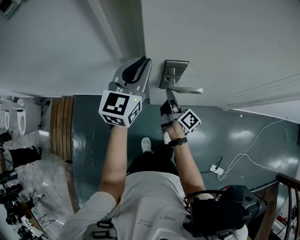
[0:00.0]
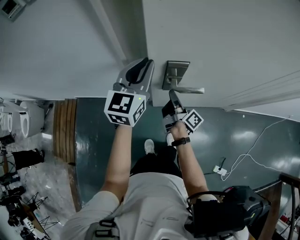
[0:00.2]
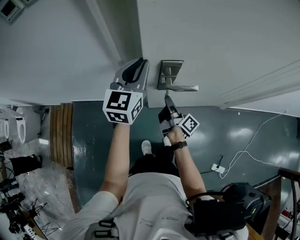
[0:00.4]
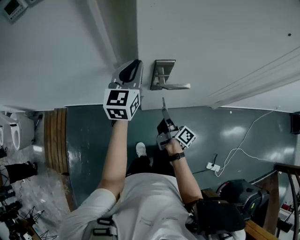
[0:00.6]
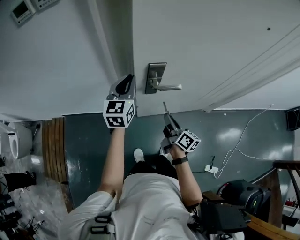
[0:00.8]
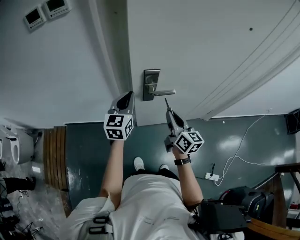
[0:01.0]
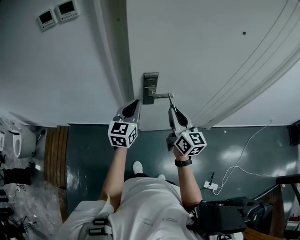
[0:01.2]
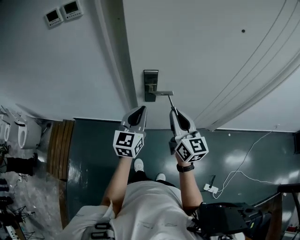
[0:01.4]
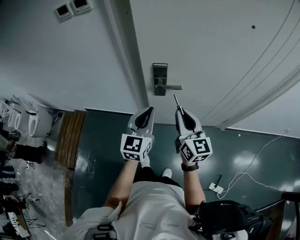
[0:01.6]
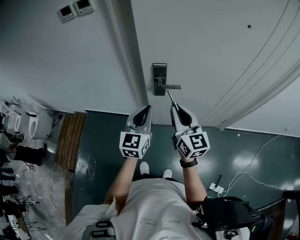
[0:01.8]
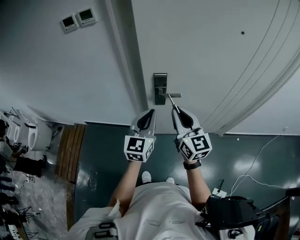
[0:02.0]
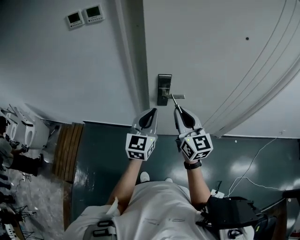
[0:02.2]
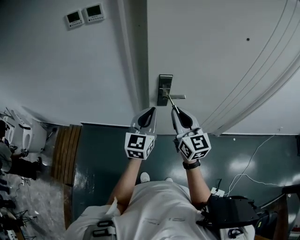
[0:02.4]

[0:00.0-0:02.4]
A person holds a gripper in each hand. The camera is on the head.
0:00.0 to 0:01.2: The right gripper shifts roughly 25 cm upward and backward, and twists some 50 degrees counterclockwise, seen from behind, while the left gripper is displaced backward by roughly 15 cm.
0:01.2 to 0:02.4: The left gripper goes approximately 10 cm backward and upward, while the right gripper is displaced to the left and upward by some 10 cm.

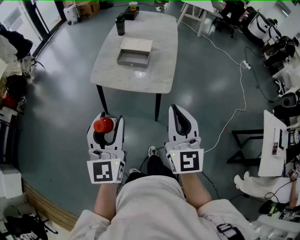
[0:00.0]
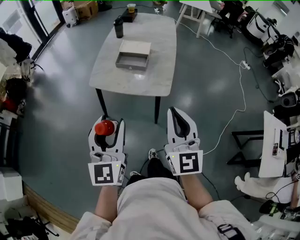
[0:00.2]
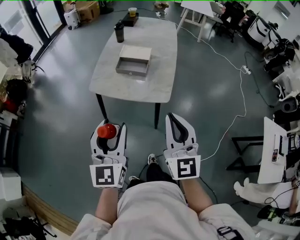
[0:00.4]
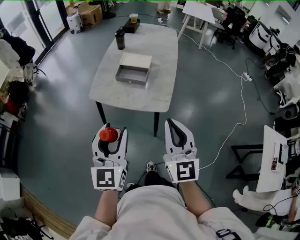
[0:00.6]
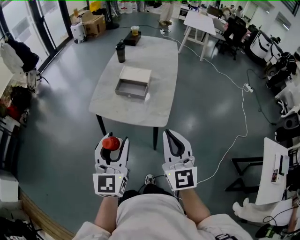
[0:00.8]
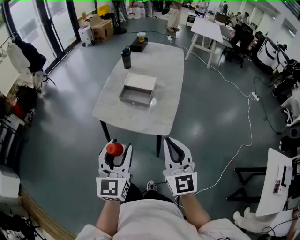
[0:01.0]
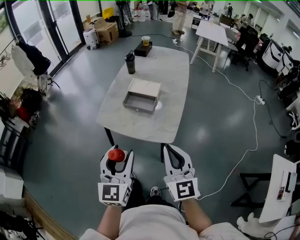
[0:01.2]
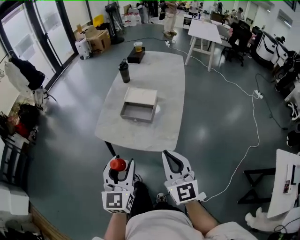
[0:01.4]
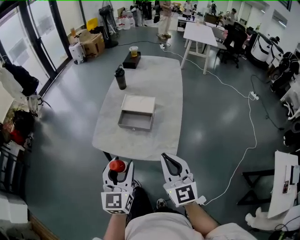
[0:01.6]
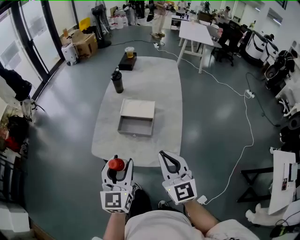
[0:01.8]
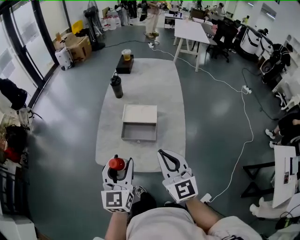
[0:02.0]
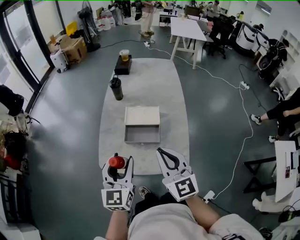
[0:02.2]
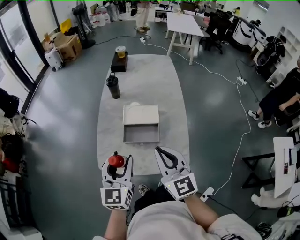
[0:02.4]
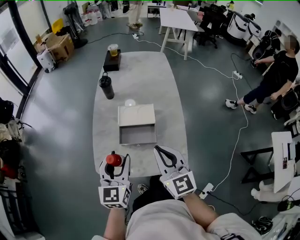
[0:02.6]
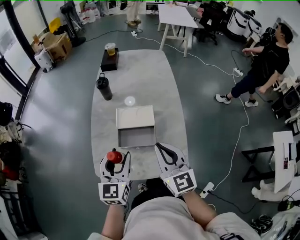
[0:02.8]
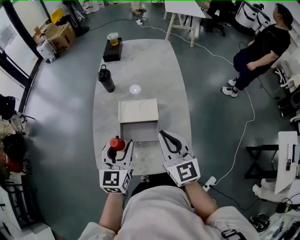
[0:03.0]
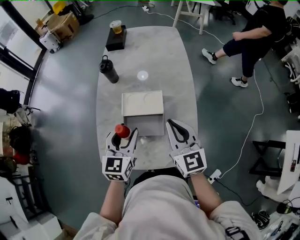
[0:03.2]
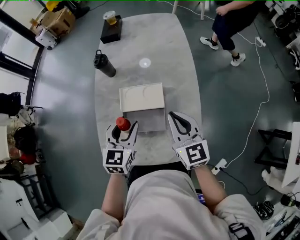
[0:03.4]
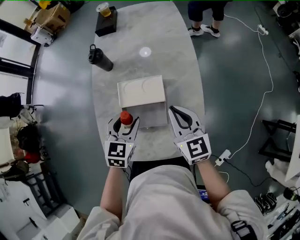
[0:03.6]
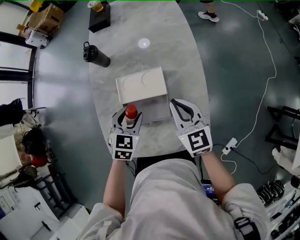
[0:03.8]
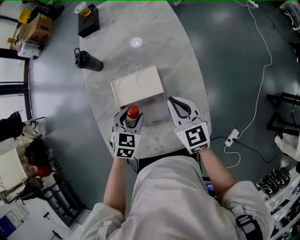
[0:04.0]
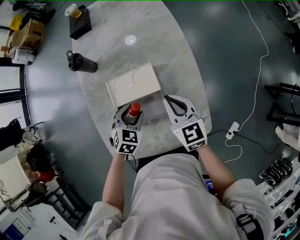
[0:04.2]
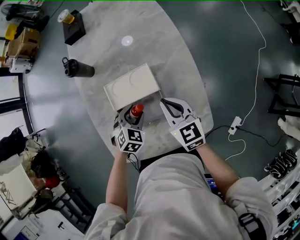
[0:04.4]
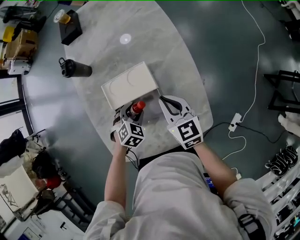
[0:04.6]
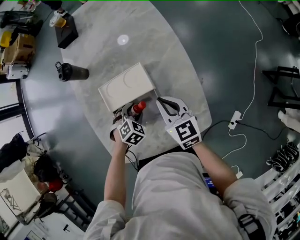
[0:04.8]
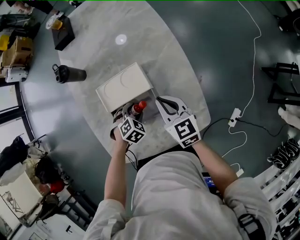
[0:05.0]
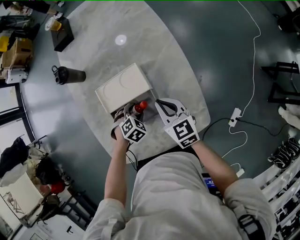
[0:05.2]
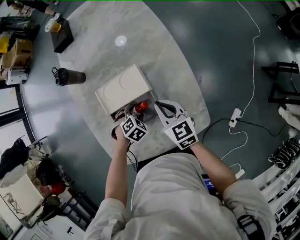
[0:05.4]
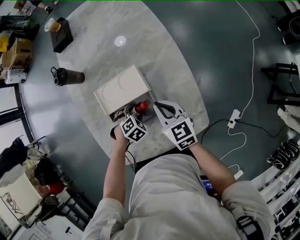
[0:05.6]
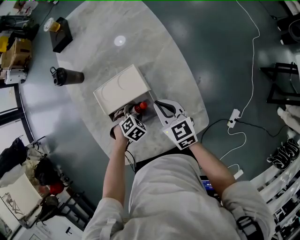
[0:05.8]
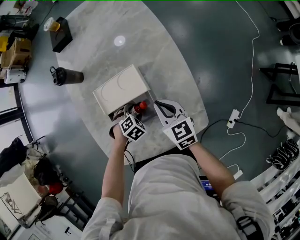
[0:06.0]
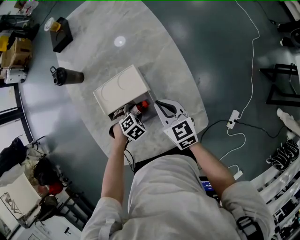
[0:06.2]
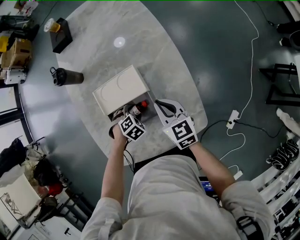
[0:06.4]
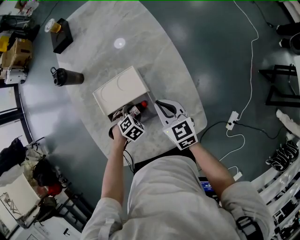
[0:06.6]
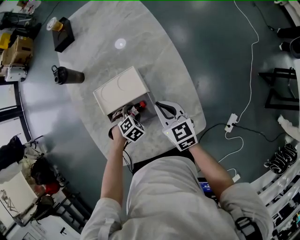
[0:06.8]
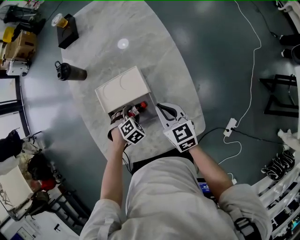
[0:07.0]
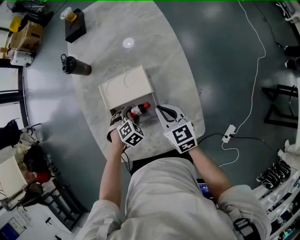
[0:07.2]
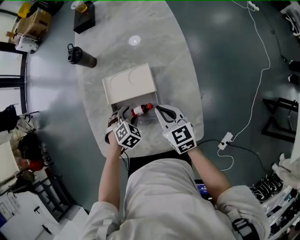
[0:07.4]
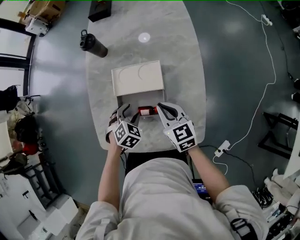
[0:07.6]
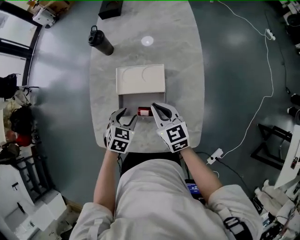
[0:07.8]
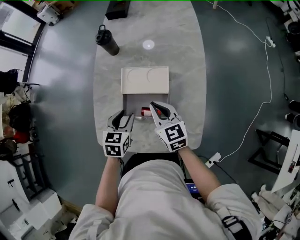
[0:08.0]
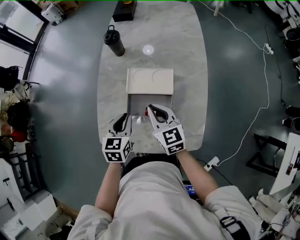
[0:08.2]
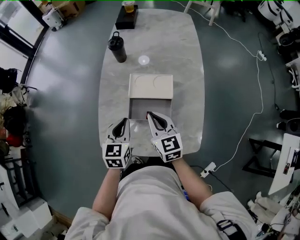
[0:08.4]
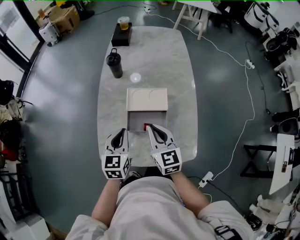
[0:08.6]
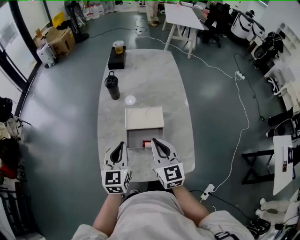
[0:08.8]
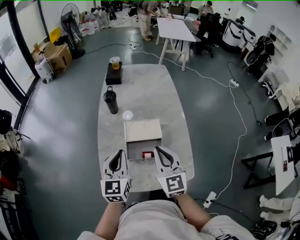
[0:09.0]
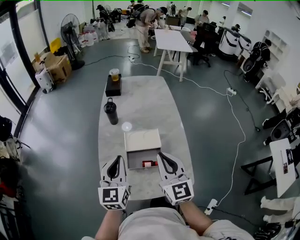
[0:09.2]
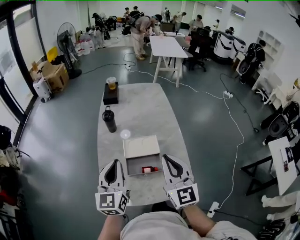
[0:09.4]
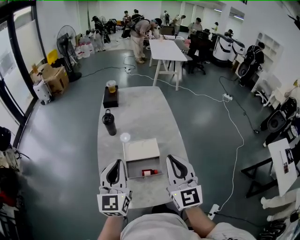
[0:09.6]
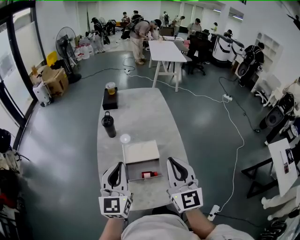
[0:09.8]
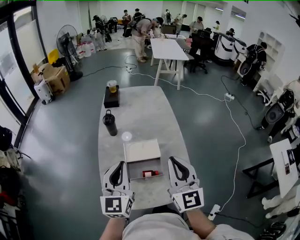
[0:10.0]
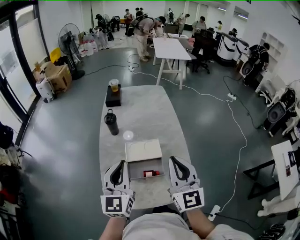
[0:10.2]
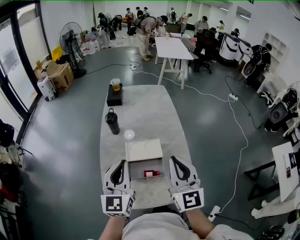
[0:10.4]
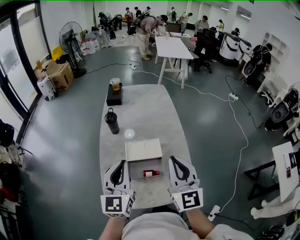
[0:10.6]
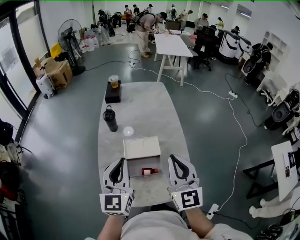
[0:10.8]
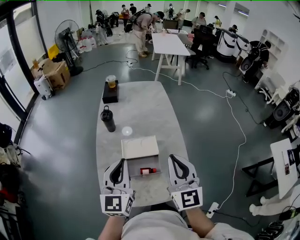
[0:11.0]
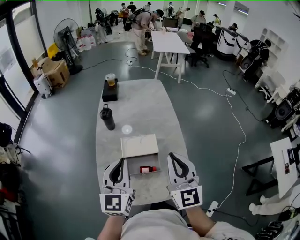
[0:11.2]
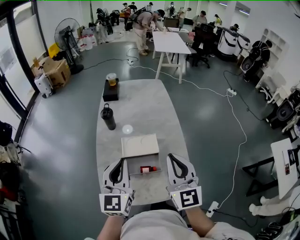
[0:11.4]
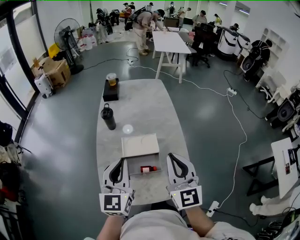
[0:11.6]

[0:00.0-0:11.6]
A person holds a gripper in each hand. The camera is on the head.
0:00.0 to 0:01.4: The right gripper moves forward, approximately 15 cm. Meanwhile the left gripper goes some 15 cm forward and to the right.
0:01.4 to 0:02.8: The grippers both shift forward by some 30 cm.
0:02.8 to 0:04.4: Both grippers move downward and forward, roughly 25 cm. The left gripper tips its fingers downward by some 40 degrees. The right gripper changes its angle by some 20 degrees.
0:04.4 to 0:05.8: The right gripper ends up about 5 cm from where it was, while the left gripper is displaced downward by about 10 cm, and changes its angle by about 30 degrees.
0:05.8 to 0:07.2: The grippers stay close to where they were, moving slightly.
0:07.2 to 0:08.8: The left gripper travels upward and to the left by about 30 cm, angles its fingers upward, by some 60 degrees, and closes its fingers, while the right gripper is displaced upward and to the left by approximately 20 cm, and rotates roughly 20 degrees.
0:08.8 to 0:10.2: Both grippers move upward, about 15 cm.
0:10.2 to 0:11.6: There are only small adjustments of the grippers.

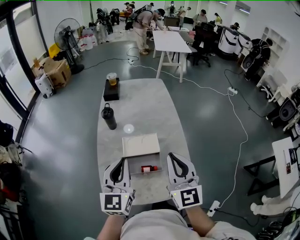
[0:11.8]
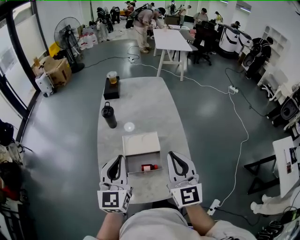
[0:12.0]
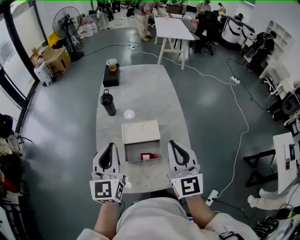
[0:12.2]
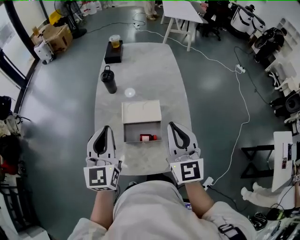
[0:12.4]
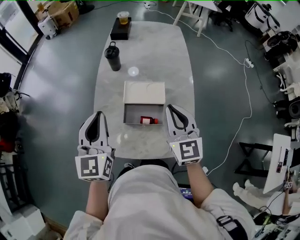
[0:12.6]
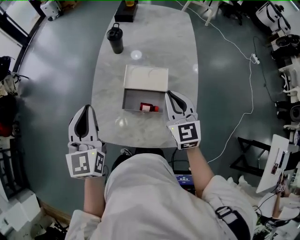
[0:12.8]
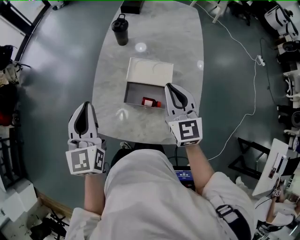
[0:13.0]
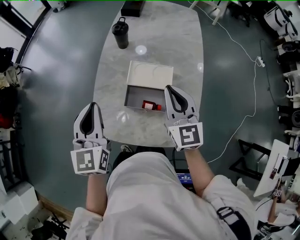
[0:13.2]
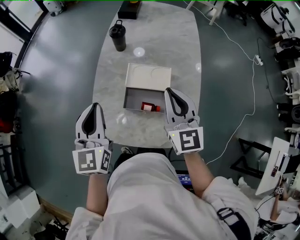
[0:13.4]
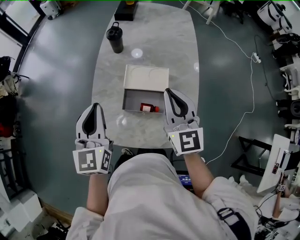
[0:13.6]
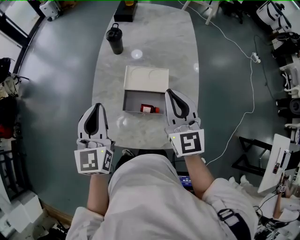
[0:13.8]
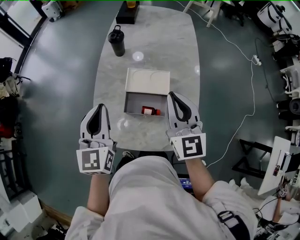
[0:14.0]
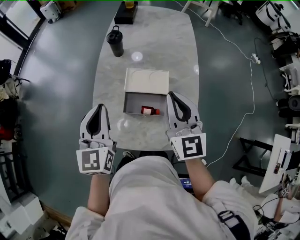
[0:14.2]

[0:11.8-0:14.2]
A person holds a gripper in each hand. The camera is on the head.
0:11.8 to 0:13.0: The left gripper moves to the left and downward, roughly 15 cm, and turns by some 30 degrees. The right gripper moves downward and forward, about 15 cm, and swivels roughly 20 degrees.
0:13.0 to 0:14.2: The right gripper shifts roughly 5 cm upward.

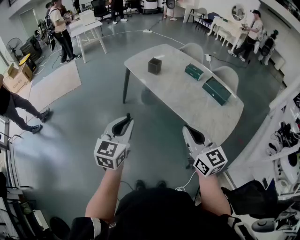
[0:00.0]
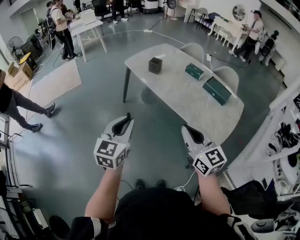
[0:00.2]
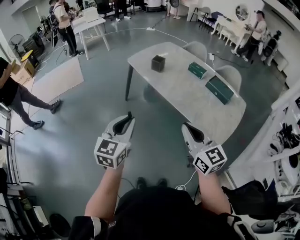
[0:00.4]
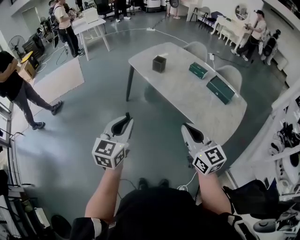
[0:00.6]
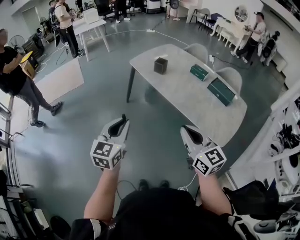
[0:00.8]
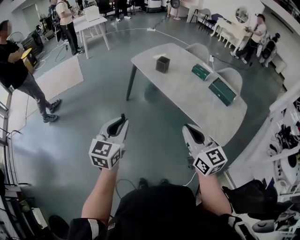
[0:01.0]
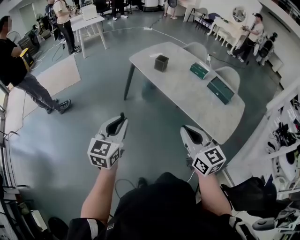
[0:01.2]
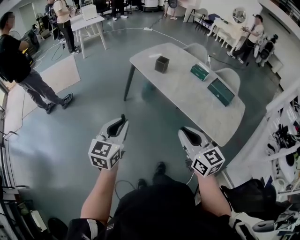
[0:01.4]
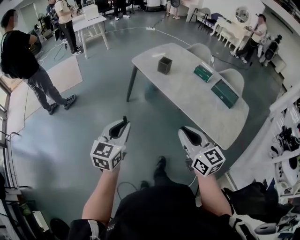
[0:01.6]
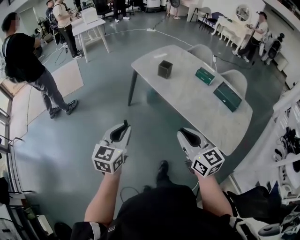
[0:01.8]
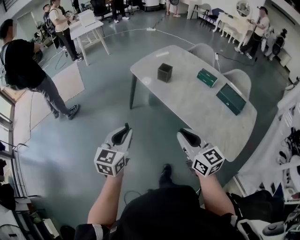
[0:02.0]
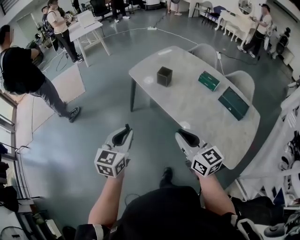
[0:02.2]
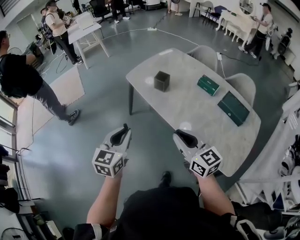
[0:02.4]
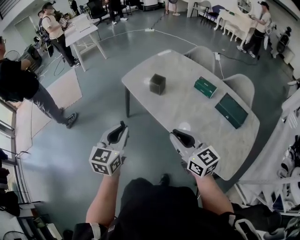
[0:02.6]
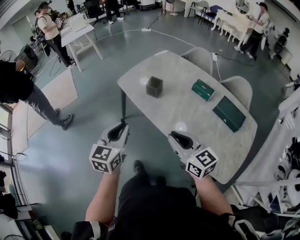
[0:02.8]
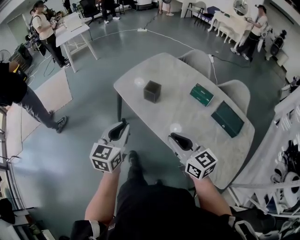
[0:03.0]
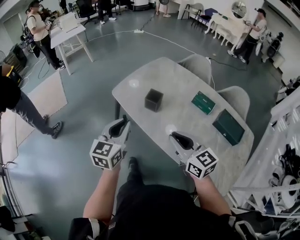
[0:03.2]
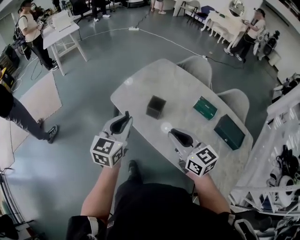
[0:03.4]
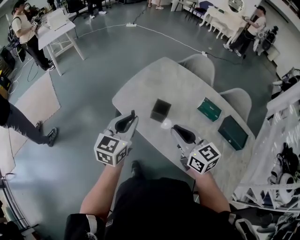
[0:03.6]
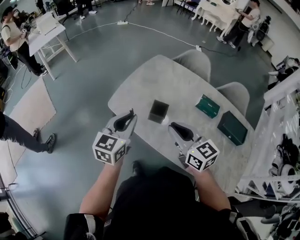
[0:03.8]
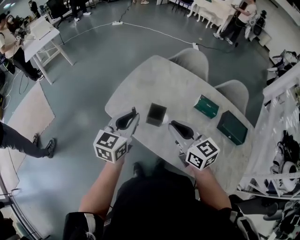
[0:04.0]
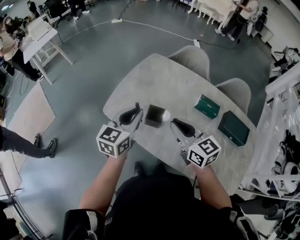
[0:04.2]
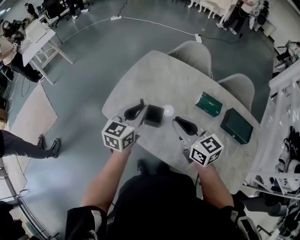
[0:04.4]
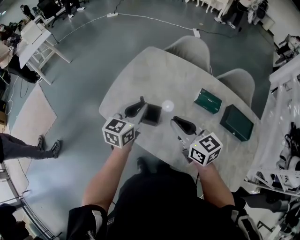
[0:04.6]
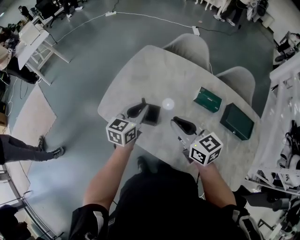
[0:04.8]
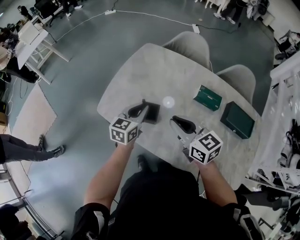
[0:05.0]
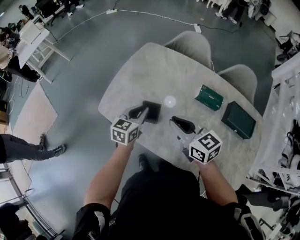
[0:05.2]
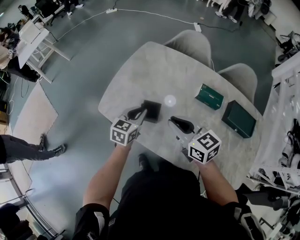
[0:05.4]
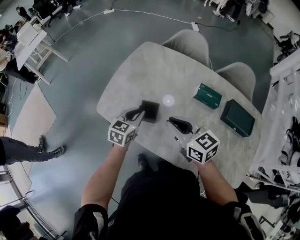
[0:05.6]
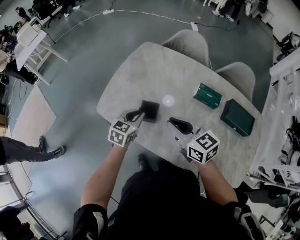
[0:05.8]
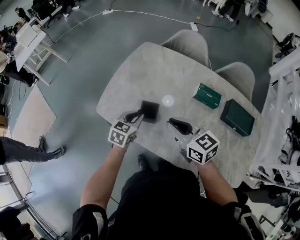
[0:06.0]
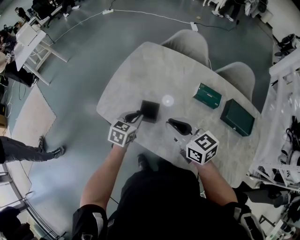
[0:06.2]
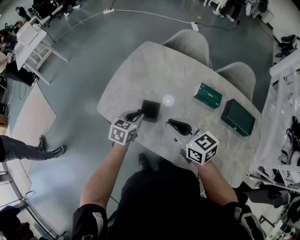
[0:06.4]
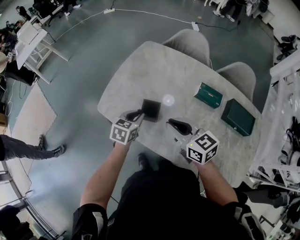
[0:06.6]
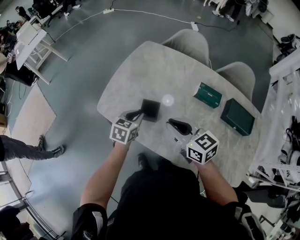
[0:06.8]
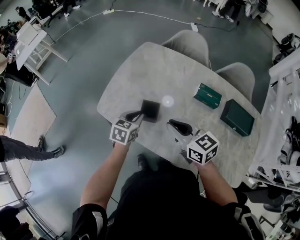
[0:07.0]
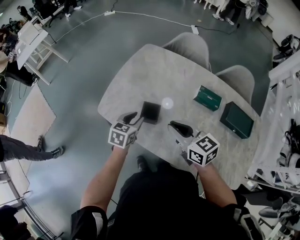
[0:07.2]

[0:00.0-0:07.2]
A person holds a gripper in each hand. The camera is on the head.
0:00.0 to 0:01.4: Both grippers travel together to the left, about 10 cm.
0:01.4 to 0:02.8: The left gripper heads forward and to the right, covering approximately 35 cm, while the right gripper goes roughly 30 cm forward.
0:02.8 to 0:04.4: Both grippers travel together forward, some 40 cm. The left gripper rotates some 30 degrees.
0:04.4 to 0:05.8: The left gripper goes approximately 15 cm downward.
0:05.8 to 0:07.2: There are only small adjustments of the grippers.
